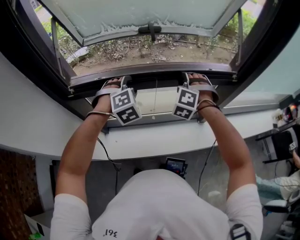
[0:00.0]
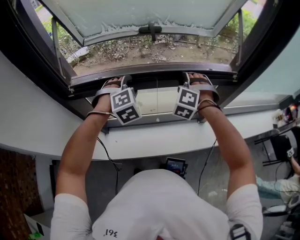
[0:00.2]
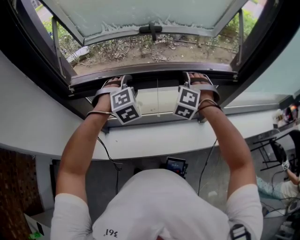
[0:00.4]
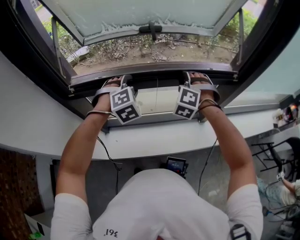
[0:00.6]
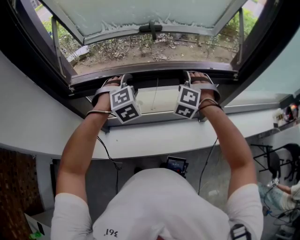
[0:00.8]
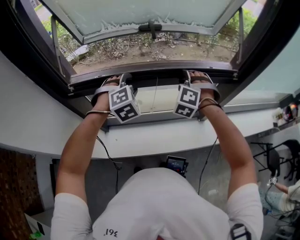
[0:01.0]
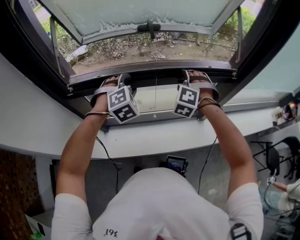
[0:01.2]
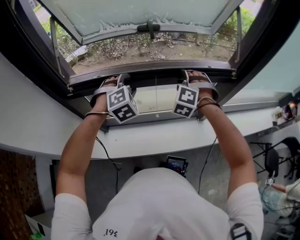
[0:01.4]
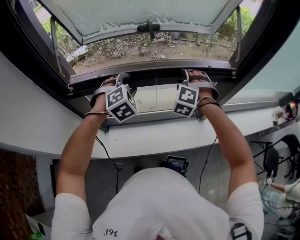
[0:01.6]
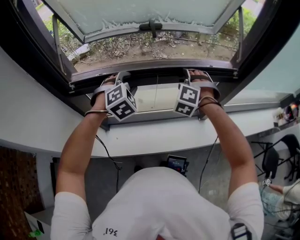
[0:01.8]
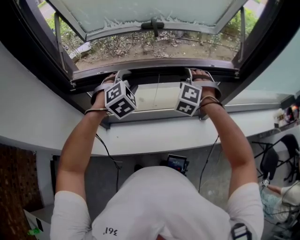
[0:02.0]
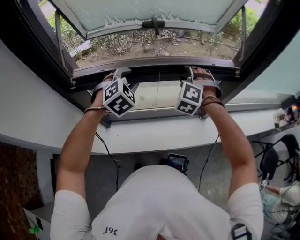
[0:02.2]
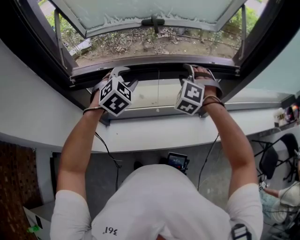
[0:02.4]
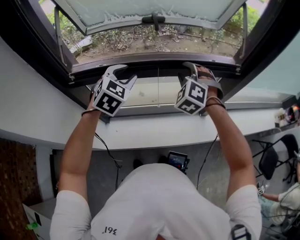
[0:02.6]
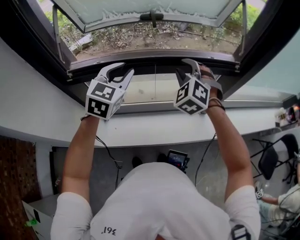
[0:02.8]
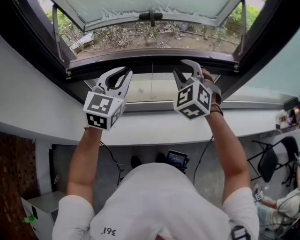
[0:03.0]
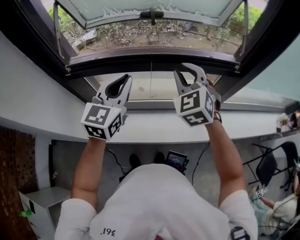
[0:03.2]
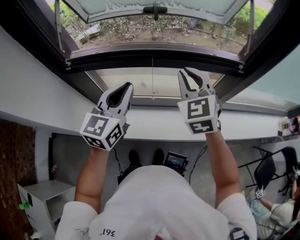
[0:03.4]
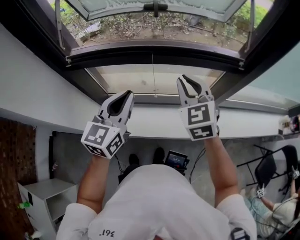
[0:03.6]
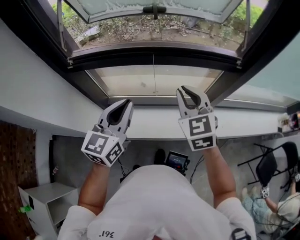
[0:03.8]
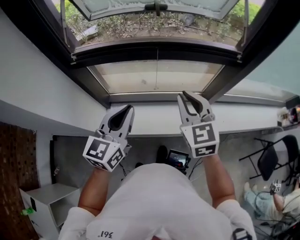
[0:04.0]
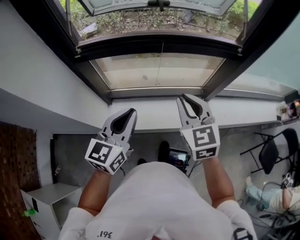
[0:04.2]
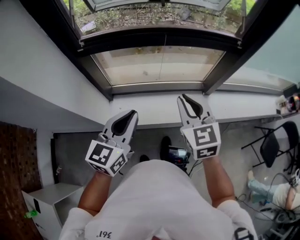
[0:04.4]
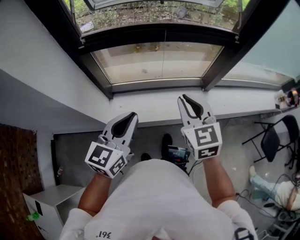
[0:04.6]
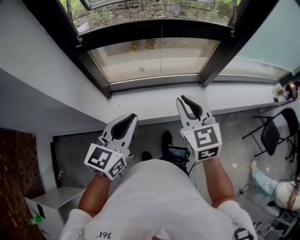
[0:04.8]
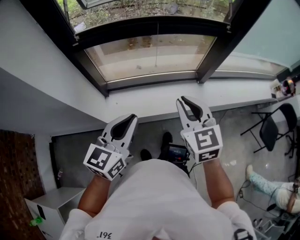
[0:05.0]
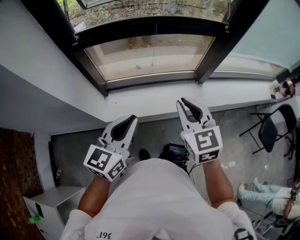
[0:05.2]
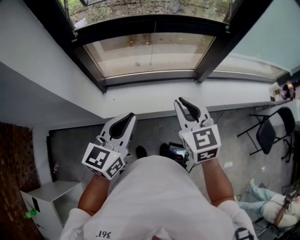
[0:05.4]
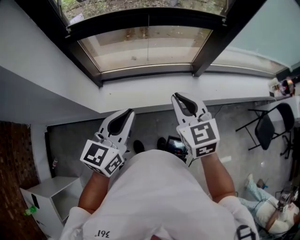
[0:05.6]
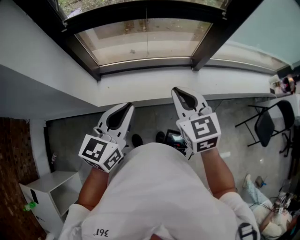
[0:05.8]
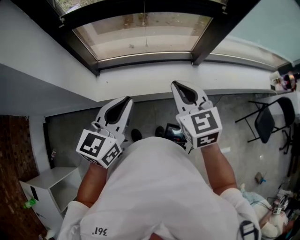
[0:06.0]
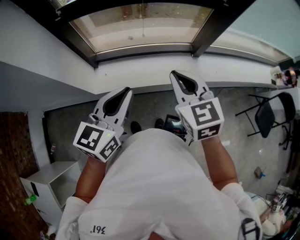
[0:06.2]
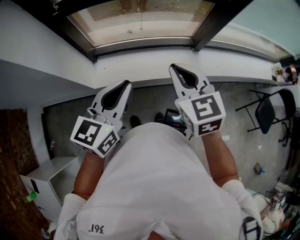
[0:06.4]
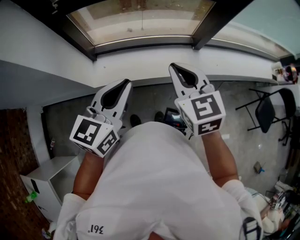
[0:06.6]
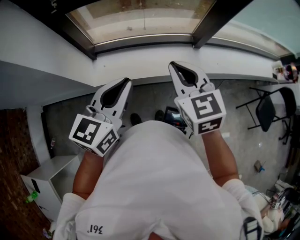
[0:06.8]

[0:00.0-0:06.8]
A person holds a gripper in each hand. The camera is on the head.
0:00.0 to 0:01.4: The two grippers keep their place.
0:01.4 to 0:02.8: The right gripper travels upward by some 5 cm, and turns by about 20 degrees. The left gripper heads upward, covering some 10 cm, and turns by approximately 50 degrees.
0:02.8 to 0:04.0: Both grippers travel together backward, approximately 20 cm. The right gripper twists some 40 degrees clockwise, seen from behind, and closes up, while the left gripper swivels approximately 30 degrees, and closes.
0:04.0 to 0:05.4: Both grippers move backward, some 15 cm.
0:05.4 to 0:06.8: The grippers move only a little.

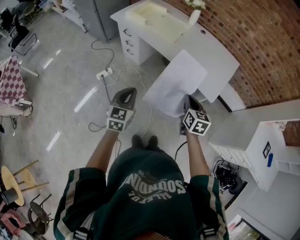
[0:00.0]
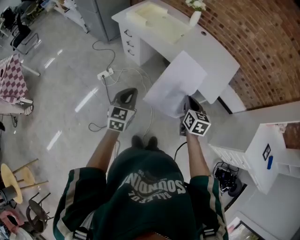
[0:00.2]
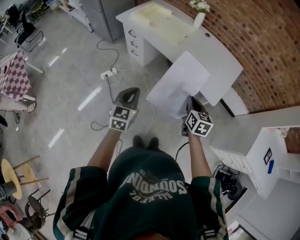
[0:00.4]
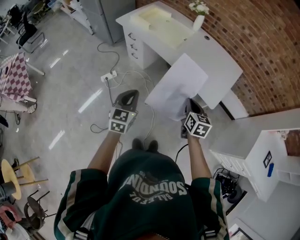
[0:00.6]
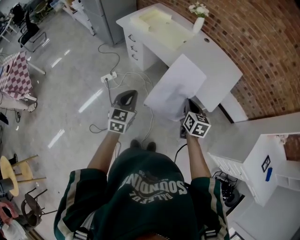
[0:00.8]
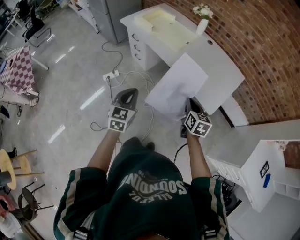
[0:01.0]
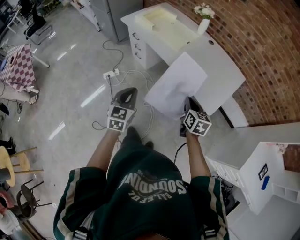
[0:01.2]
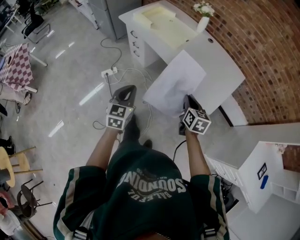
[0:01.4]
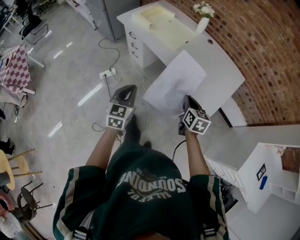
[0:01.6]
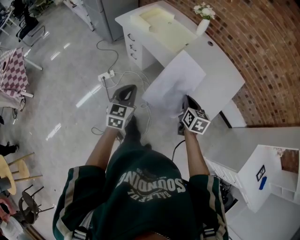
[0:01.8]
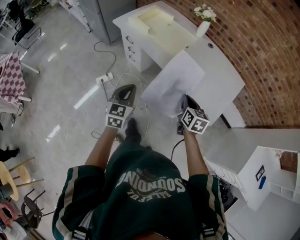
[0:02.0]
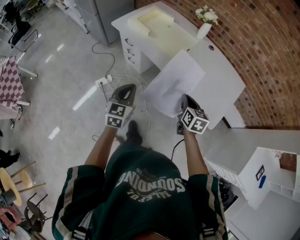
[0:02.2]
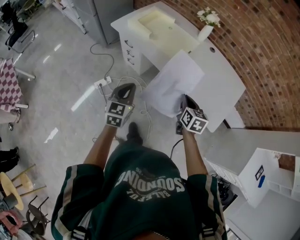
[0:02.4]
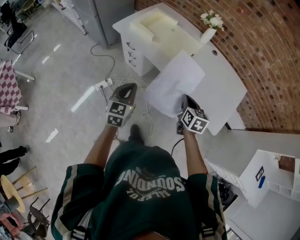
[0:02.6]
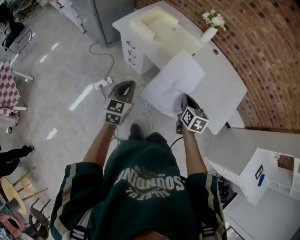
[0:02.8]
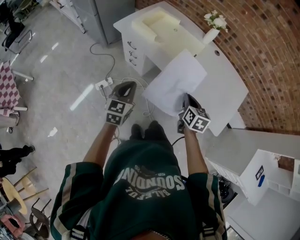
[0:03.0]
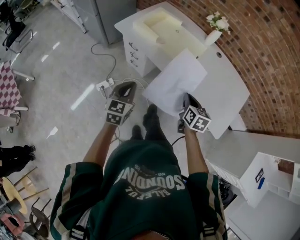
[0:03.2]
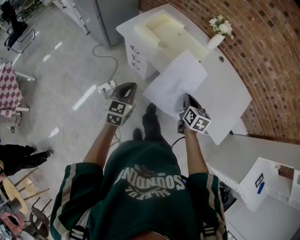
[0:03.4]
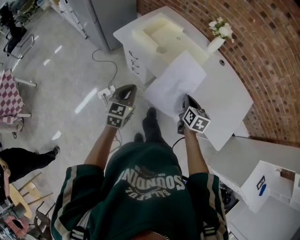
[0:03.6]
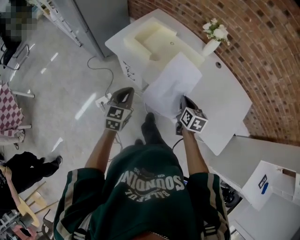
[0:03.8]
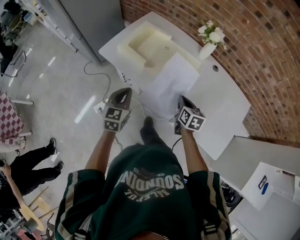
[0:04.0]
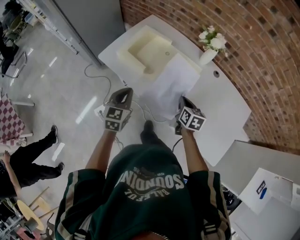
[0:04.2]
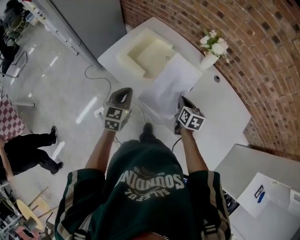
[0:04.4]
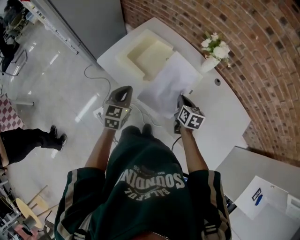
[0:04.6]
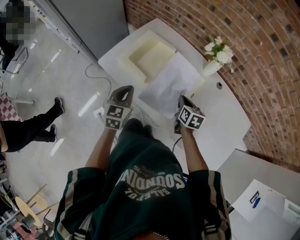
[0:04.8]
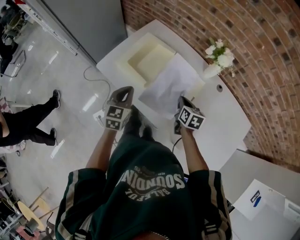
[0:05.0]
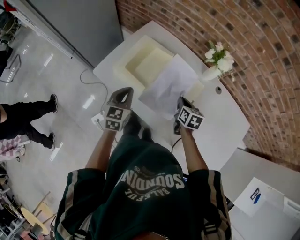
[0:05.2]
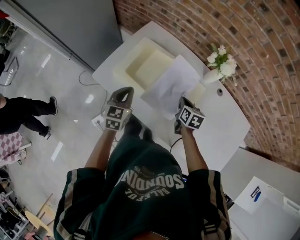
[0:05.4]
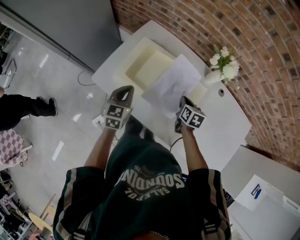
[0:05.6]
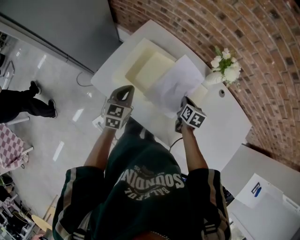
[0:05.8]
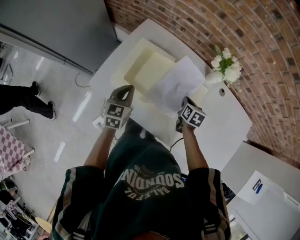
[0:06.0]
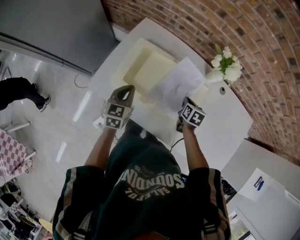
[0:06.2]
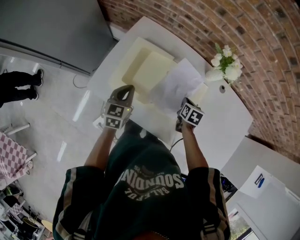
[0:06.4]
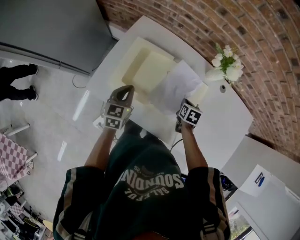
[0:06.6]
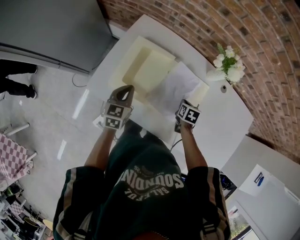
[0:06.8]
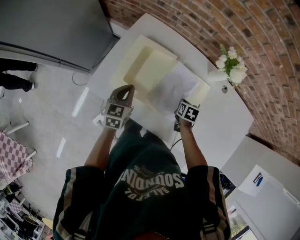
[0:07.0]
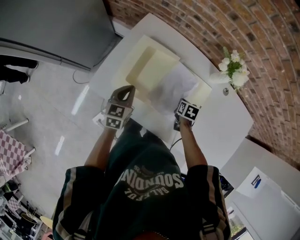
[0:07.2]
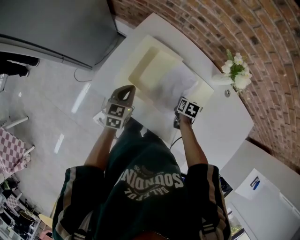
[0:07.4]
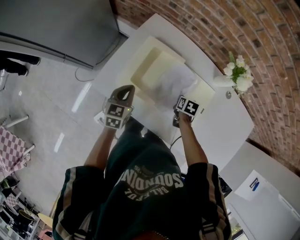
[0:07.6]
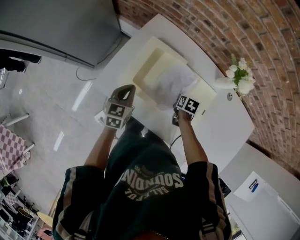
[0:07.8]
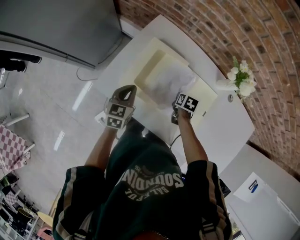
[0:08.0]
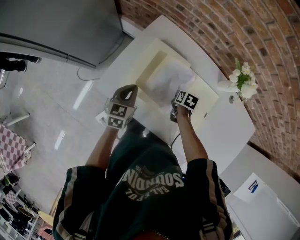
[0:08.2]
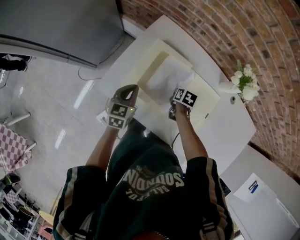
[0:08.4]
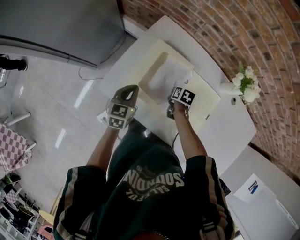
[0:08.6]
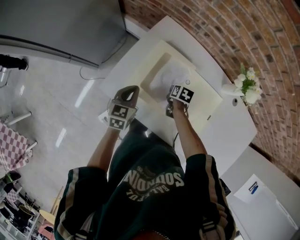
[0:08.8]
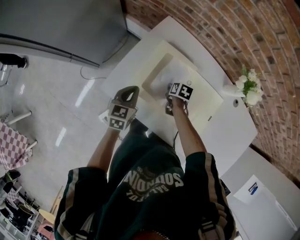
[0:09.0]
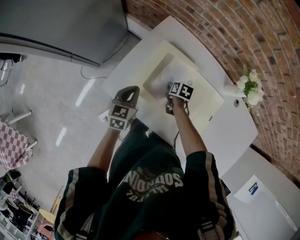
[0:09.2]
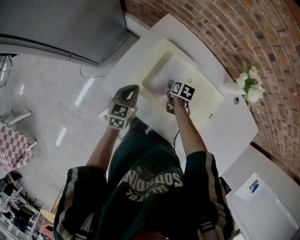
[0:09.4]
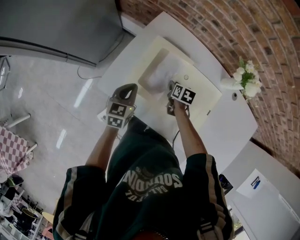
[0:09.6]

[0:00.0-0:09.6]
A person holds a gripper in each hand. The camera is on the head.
0:00.0 to 0:01.6: The two grippers go approximately 5 cm forward.
0:01.6 to 0:03.2: The grippers both shift forward and to the left by about 25 cm.
0:03.2 to 0:04.8: Both grippers move forward, approximately 30 cm.
0:04.8 to 0:06.4: The left gripper moves forward, approximately 20 cm. The right gripper shifts about 15 cm forward and downward, and changes its angle by some 30 degrees.
0:06.4 to 0:08.0: The left gripper travels to the left by some 5 cm, while the right gripper travels to the left and downward by about 10 cm.
0:08.0 to 0:09.6: The right gripper heads to the left, covering about 5 cm, and opens up.

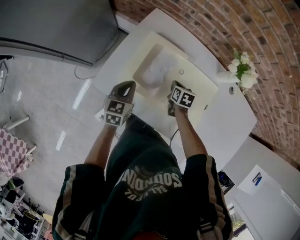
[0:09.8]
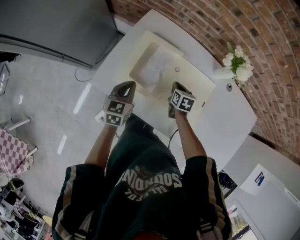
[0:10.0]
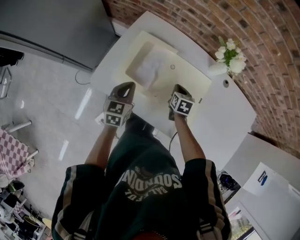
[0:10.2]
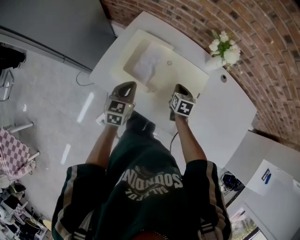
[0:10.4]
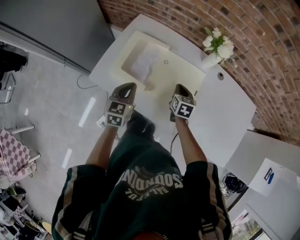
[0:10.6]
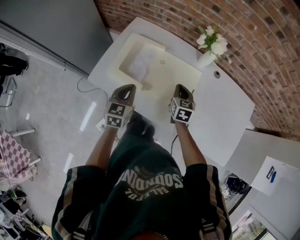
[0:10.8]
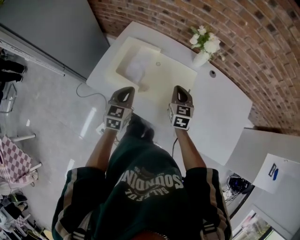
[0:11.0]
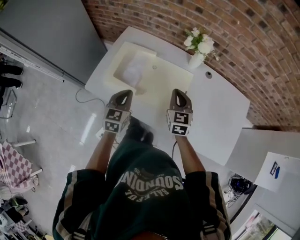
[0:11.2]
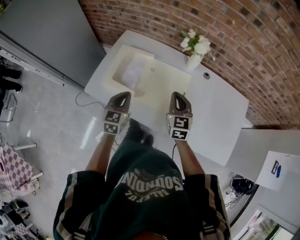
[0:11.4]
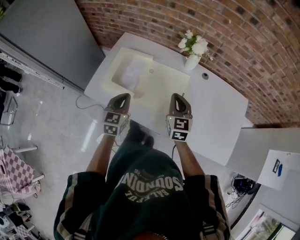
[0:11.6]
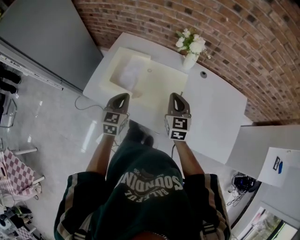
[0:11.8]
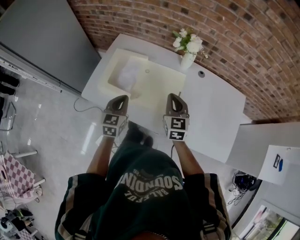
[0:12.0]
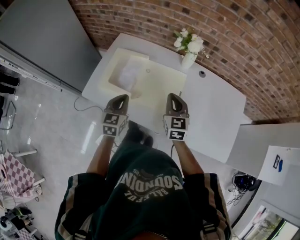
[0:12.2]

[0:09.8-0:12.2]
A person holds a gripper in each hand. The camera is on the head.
0:09.8 to 0:11.0: The right gripper travels upward, backward and to the right by about 25 cm, and rotates about 40 degrees. Meanwhile the left gripper moves to the right, backward and upward, approximately 20 cm.
0:11.0 to 0:12.2: The right gripper shifts approximately 5 cm upward.

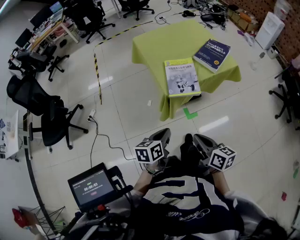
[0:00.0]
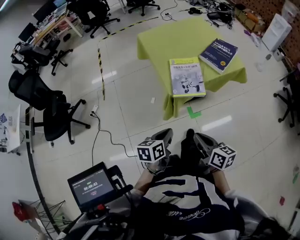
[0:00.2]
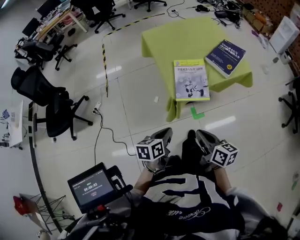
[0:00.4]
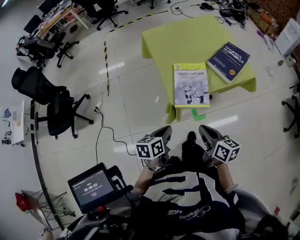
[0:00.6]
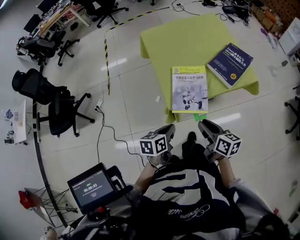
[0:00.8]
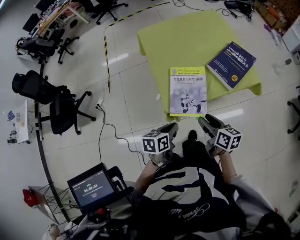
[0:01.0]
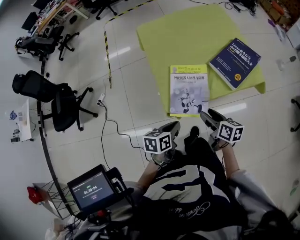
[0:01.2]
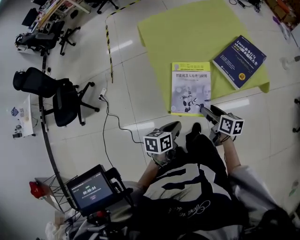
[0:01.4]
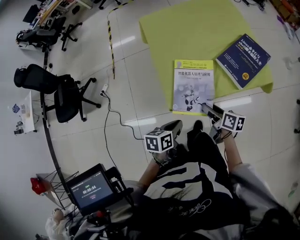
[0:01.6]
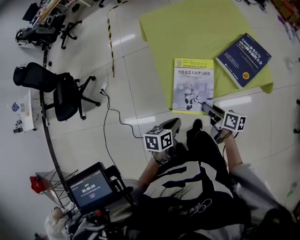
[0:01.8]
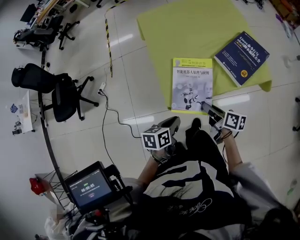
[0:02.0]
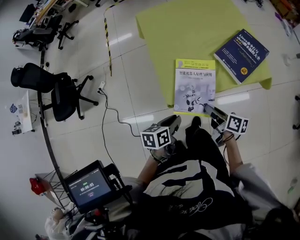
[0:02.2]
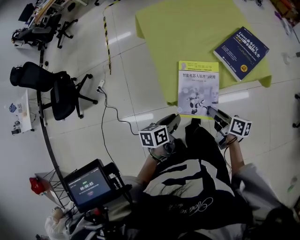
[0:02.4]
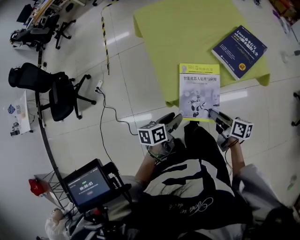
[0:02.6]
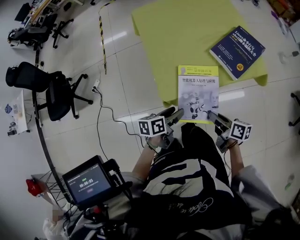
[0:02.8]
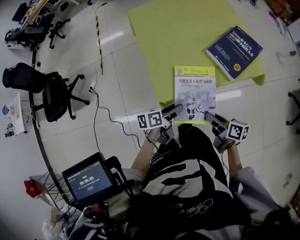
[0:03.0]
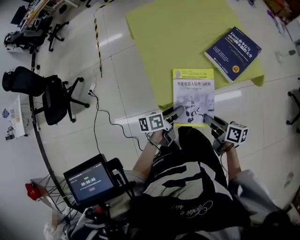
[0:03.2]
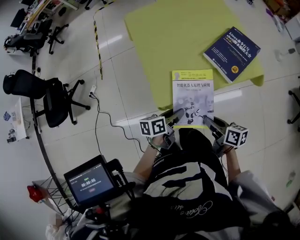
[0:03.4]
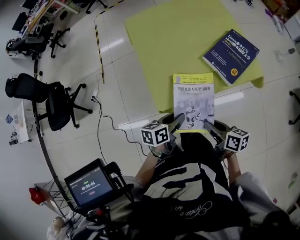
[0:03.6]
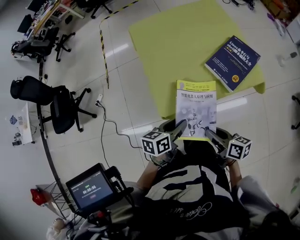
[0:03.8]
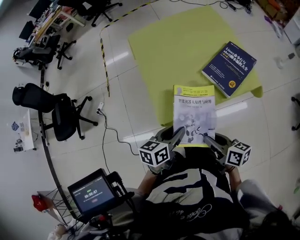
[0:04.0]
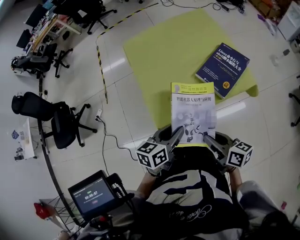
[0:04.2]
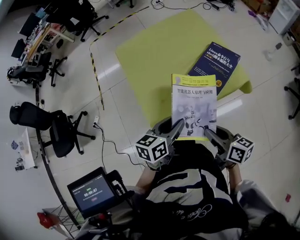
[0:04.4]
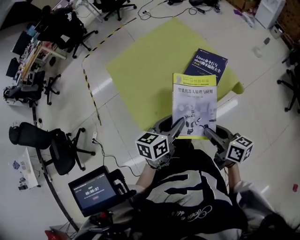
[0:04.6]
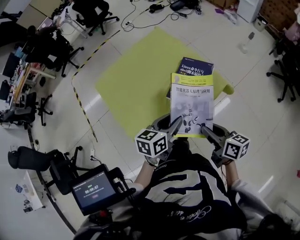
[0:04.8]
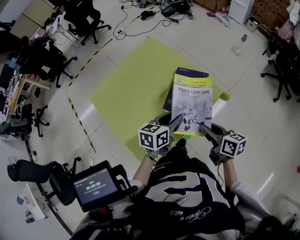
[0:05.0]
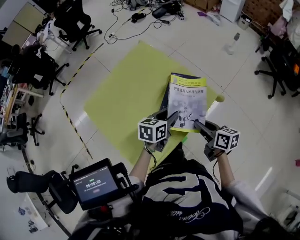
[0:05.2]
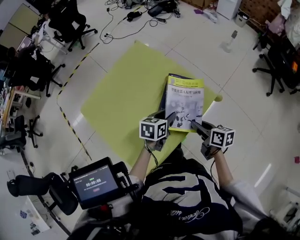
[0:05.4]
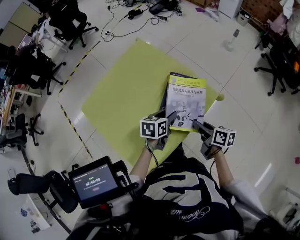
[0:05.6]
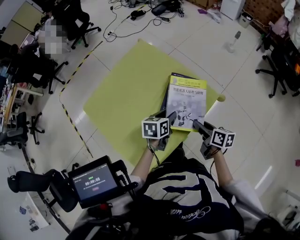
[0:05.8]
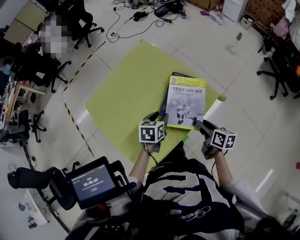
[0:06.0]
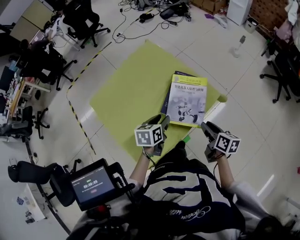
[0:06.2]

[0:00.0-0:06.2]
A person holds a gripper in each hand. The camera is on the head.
0:00.0 to 0:01.6: The left gripper heads forward, to the right and downward, covering about 30 cm; the right gripper heads forward and downward, covering about 40 cm, turns by about 20 degrees, and opens up.
0:01.6 to 0:03.2: The left gripper heads forward, covering about 10 cm, rotates some 20 degrees, and opens up, while the right gripper closes its fingers.
0:03.2 to 0:04.6: The right gripper travels upward and to the right by roughly 15 cm, and turns by some 20 degrees. The left gripper shifts approximately 20 cm upward, to the right and forward, and rotates around the line of its fingers by some 40 degrees, clockwise from behind.
0:04.6 to 0:06.2: The left gripper travels forward by some 15 cm. The right gripper travels forward, to the right and downward by roughly 20 cm, and rotates roughly 30 degrees.
